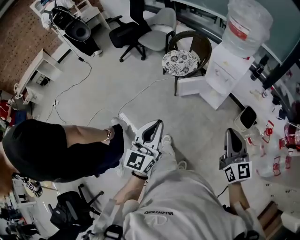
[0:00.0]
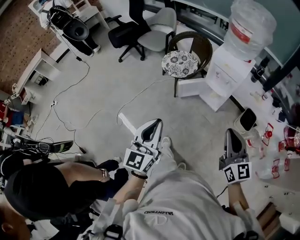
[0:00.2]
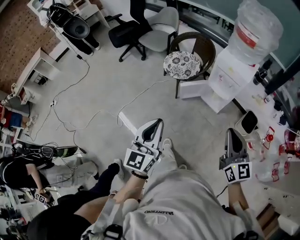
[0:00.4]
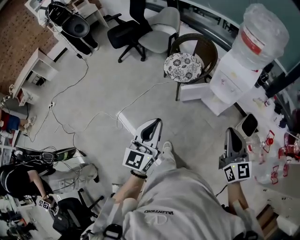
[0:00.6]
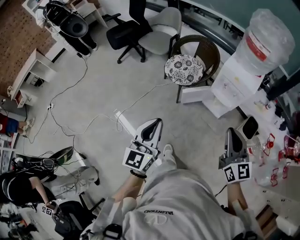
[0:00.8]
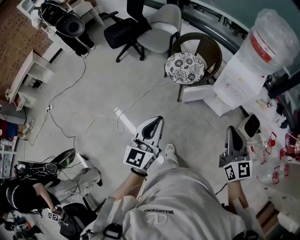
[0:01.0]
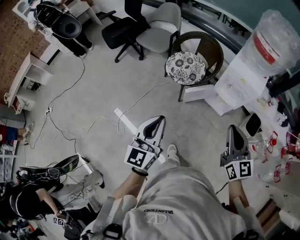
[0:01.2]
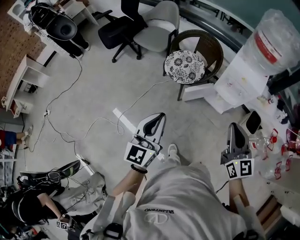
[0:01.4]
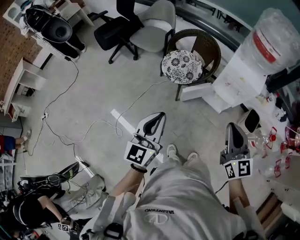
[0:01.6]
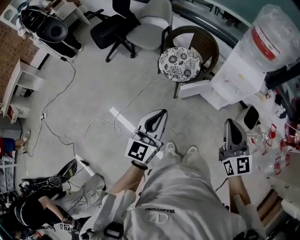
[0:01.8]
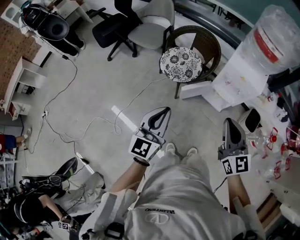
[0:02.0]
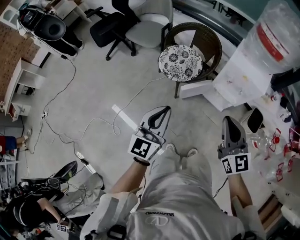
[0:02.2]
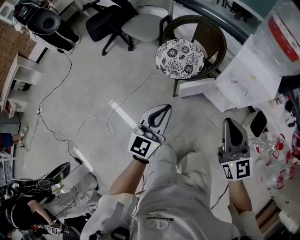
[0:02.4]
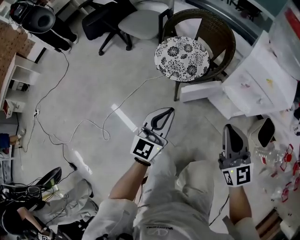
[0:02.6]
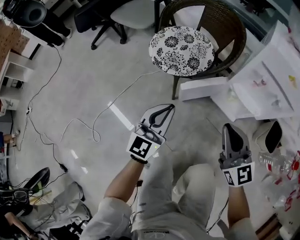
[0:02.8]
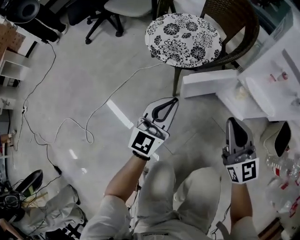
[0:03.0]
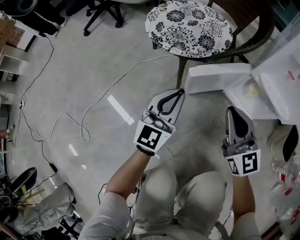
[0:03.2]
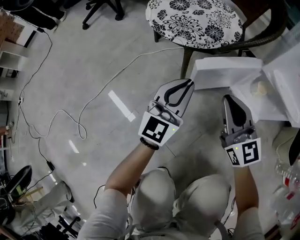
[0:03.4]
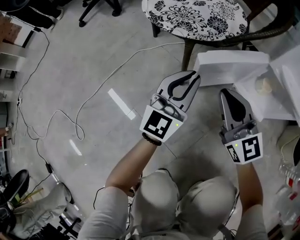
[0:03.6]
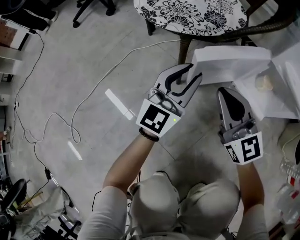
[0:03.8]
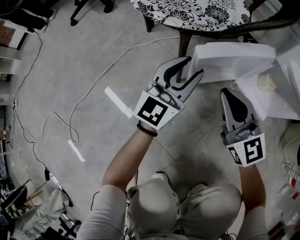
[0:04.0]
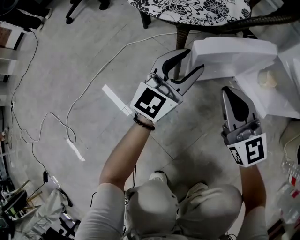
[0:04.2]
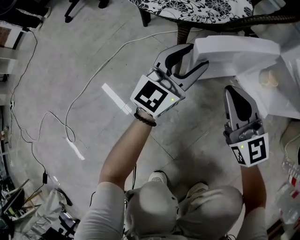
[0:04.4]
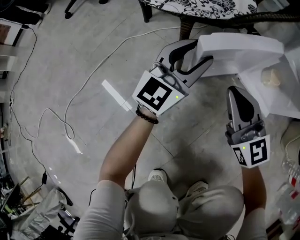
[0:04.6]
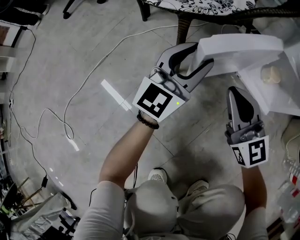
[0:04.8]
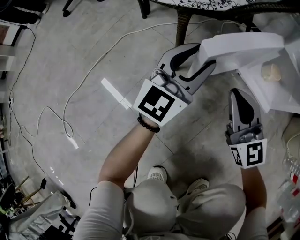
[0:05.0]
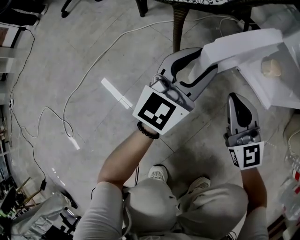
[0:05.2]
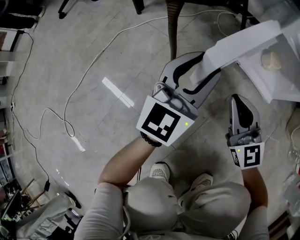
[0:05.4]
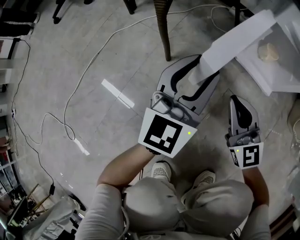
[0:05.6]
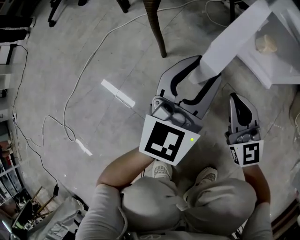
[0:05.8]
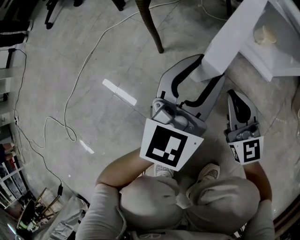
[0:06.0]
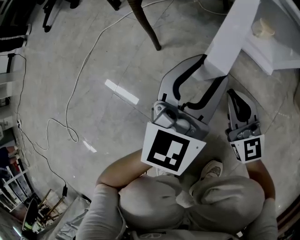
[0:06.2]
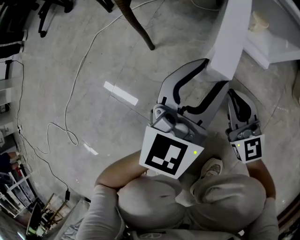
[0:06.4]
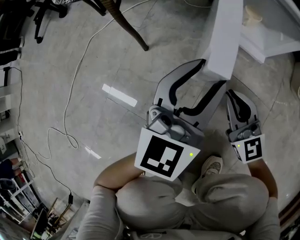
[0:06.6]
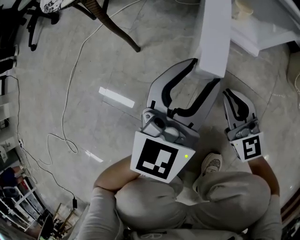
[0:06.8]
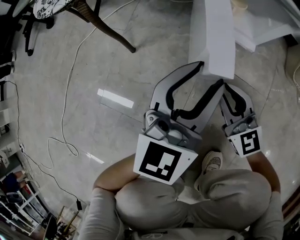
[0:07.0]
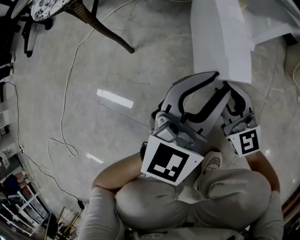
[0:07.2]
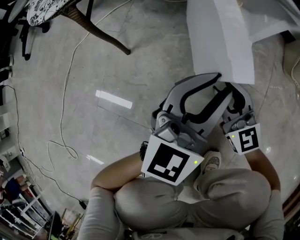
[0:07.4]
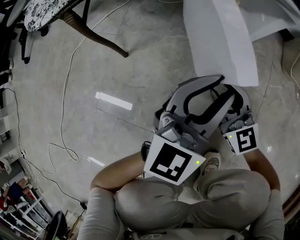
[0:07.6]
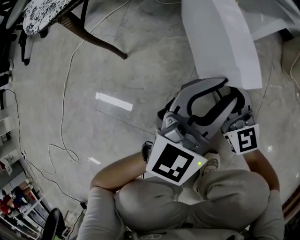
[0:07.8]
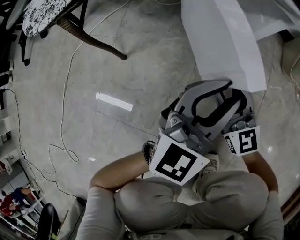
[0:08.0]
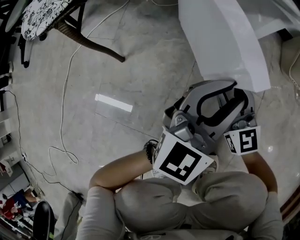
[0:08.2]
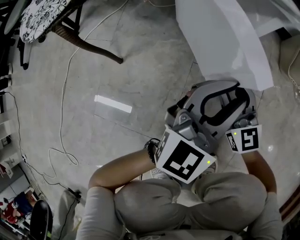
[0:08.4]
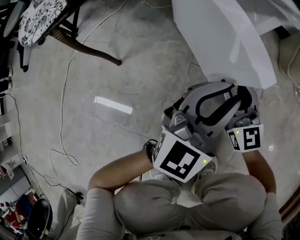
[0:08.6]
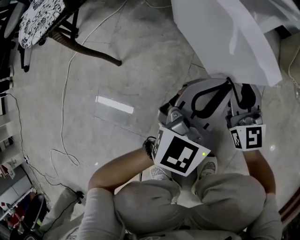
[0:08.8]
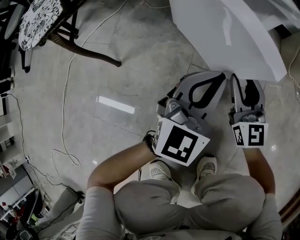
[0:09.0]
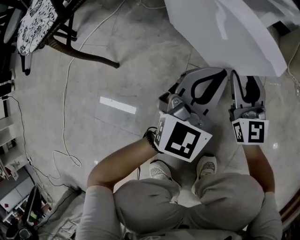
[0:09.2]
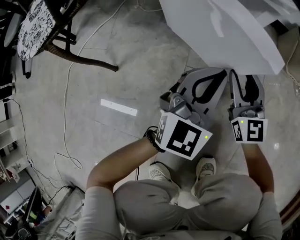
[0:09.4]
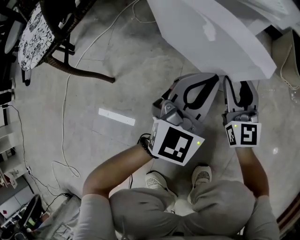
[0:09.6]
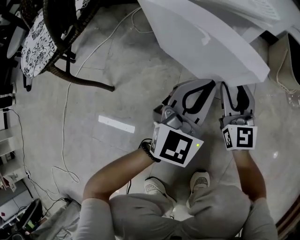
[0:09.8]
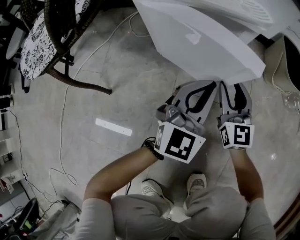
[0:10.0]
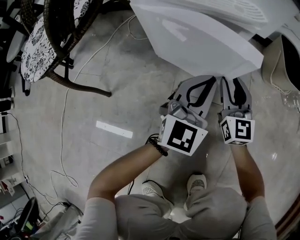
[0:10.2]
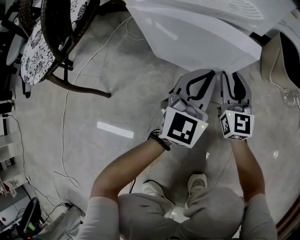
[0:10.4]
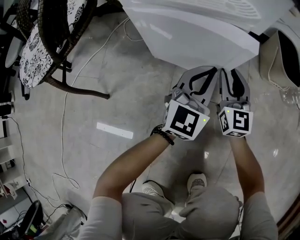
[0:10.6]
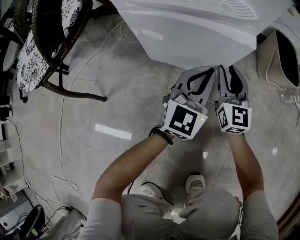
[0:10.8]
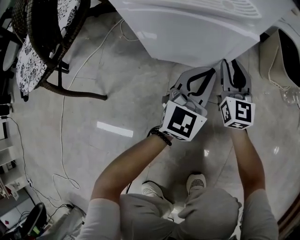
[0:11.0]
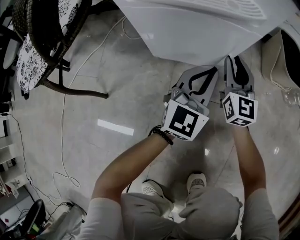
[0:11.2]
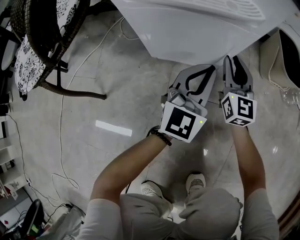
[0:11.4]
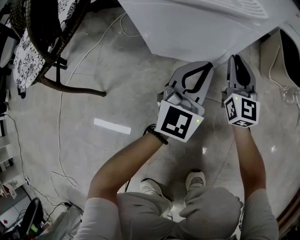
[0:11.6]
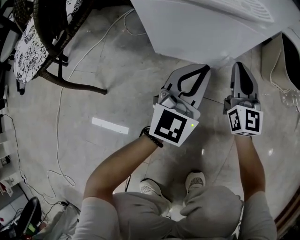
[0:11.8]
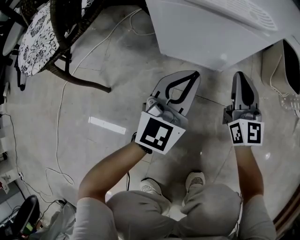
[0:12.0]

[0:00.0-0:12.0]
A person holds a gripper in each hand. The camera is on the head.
0:00.0 to 0:01.6: The two grippers go roughly 30 cm forward and to the left.
0:01.6 to 0:03.0: Both grippers move downward and forward, some 50 cm.
0:03.0 to 0:04.4: The right gripper shifts approximately 25 cm downward. Meanwhile the left gripper moves downward and forward, roughly 25 cm, and opens up.
0:04.4 to 0:06.0: The right gripper travels downward, backward and to the right by roughly 15 cm. The left gripper heads backward and to the right, covering some 15 cm.
0:06.0 to 0:07.6: The right gripper moves to the right, some 5 cm, and opens its fingers; the left gripper heads to the right, covering approximately 15 cm, and changes its angle by about 20 degrees.
0:07.6 to 0:09.0: The left gripper changes place by approximately 10 cm, and closes; the right gripper heads to the right and forward, covering some 10 cm, and changes its angle by approximately 20 degrees.
0:09.0 to 0:10.4: Both grippers move forward and to the right, approximately 10 cm.
0:10.4 to 0:12.0: The left gripper travels to the left by some 5 cm. The right gripper goes some 5 cm upward, and closes up.

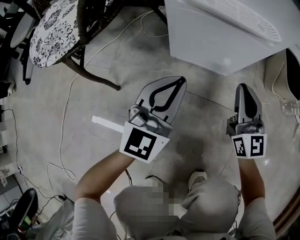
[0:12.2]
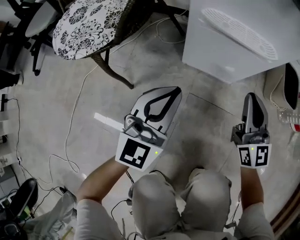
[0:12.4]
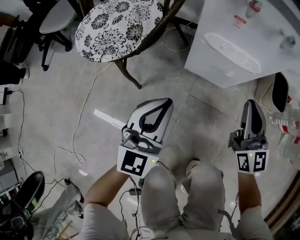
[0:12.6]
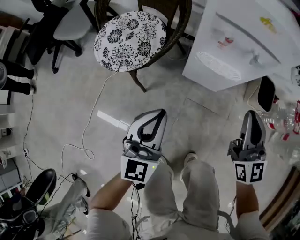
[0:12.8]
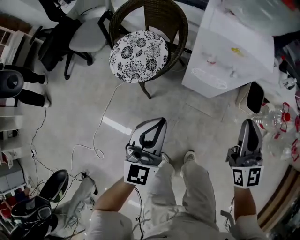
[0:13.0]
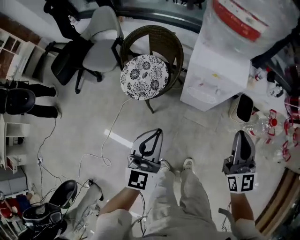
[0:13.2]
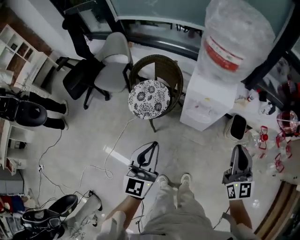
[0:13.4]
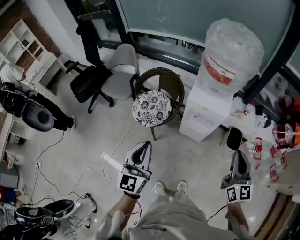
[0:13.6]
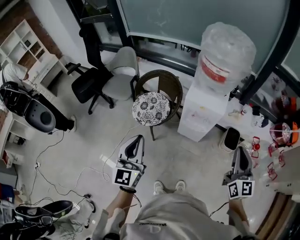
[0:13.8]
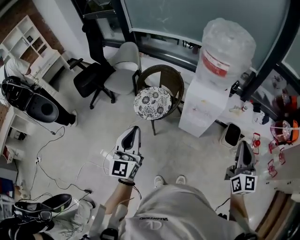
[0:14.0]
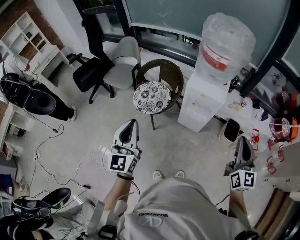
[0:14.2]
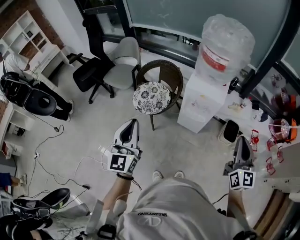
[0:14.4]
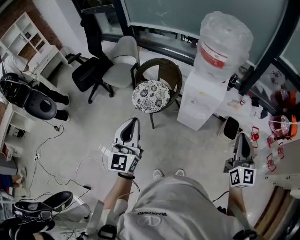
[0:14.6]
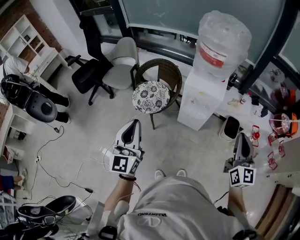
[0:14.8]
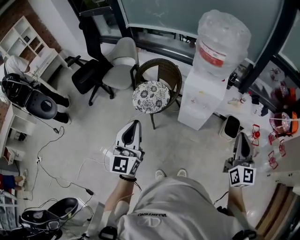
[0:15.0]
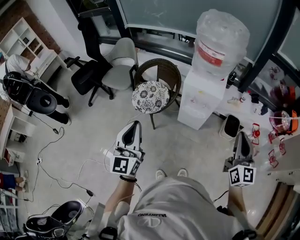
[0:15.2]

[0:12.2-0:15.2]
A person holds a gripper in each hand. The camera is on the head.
0:12.2 to 0:13.8: Both grippers travel together upward, some 80 cm. The left gripper rotates approximately 30 degrees.
0:13.8 to 0:15.2: The grippers stay close to where they were, moving slightly.

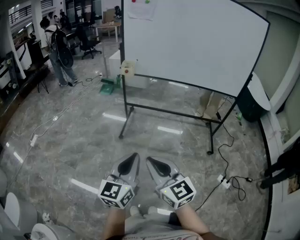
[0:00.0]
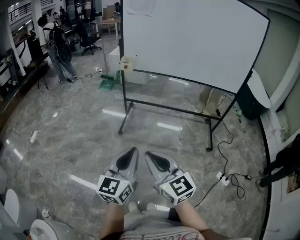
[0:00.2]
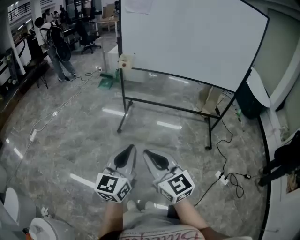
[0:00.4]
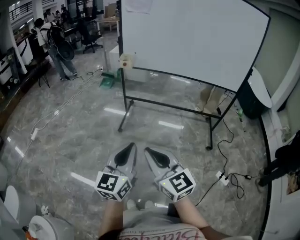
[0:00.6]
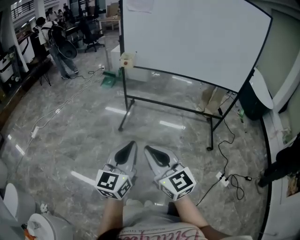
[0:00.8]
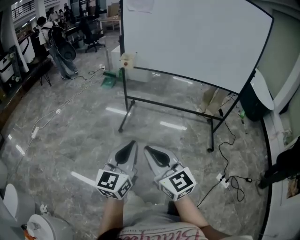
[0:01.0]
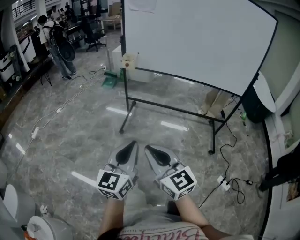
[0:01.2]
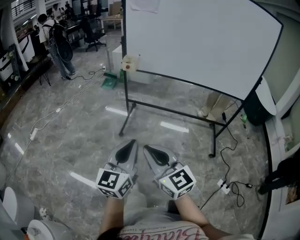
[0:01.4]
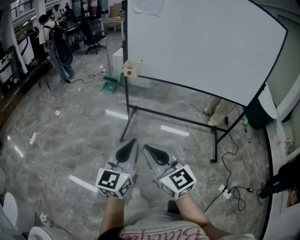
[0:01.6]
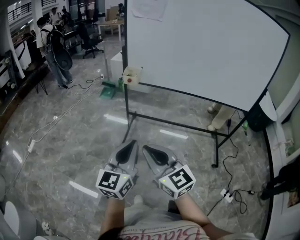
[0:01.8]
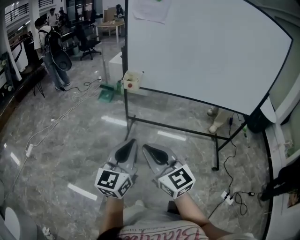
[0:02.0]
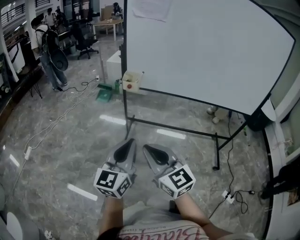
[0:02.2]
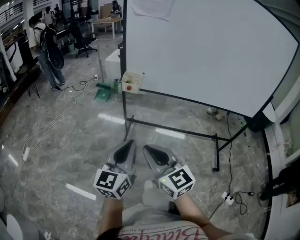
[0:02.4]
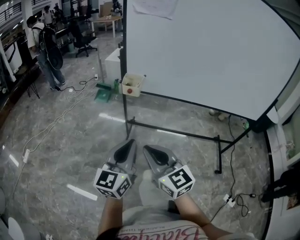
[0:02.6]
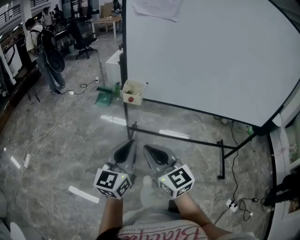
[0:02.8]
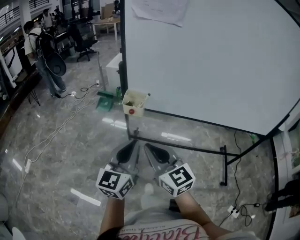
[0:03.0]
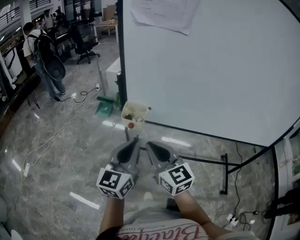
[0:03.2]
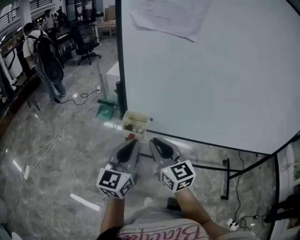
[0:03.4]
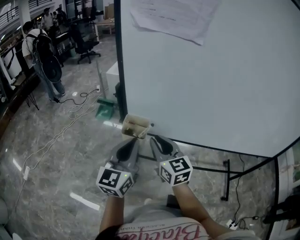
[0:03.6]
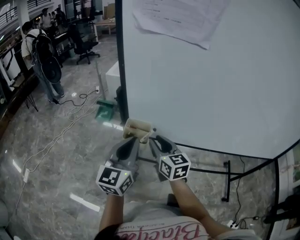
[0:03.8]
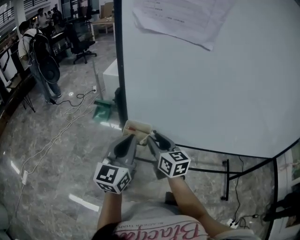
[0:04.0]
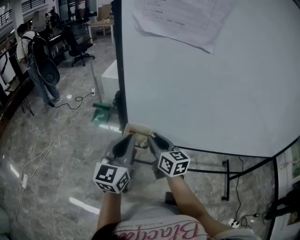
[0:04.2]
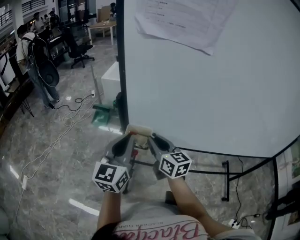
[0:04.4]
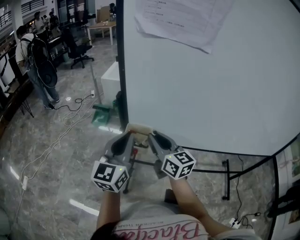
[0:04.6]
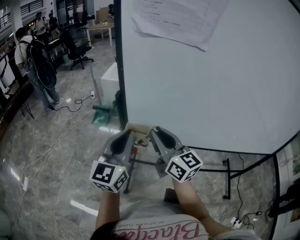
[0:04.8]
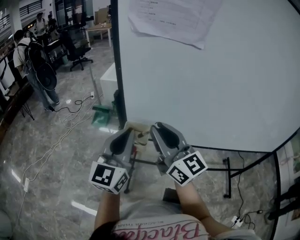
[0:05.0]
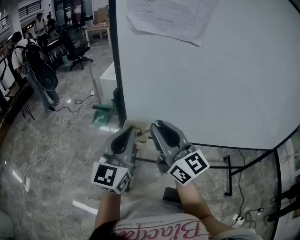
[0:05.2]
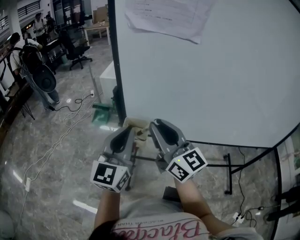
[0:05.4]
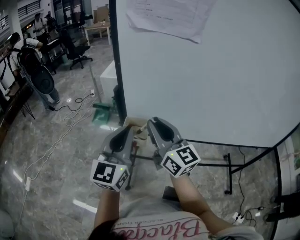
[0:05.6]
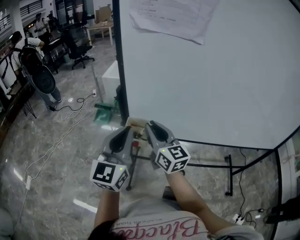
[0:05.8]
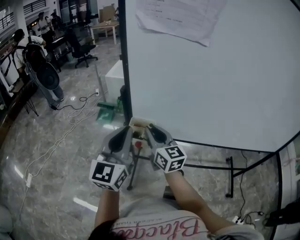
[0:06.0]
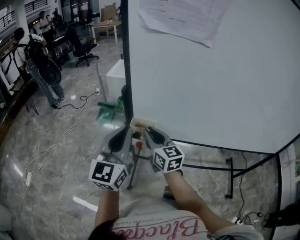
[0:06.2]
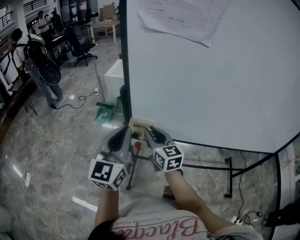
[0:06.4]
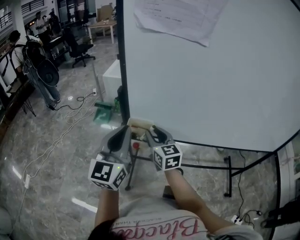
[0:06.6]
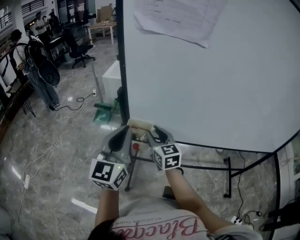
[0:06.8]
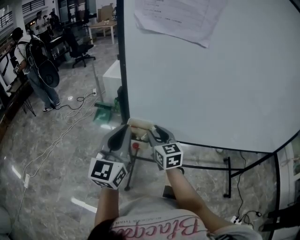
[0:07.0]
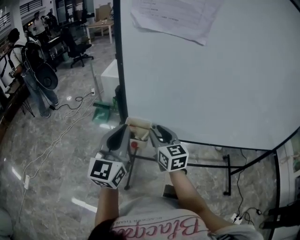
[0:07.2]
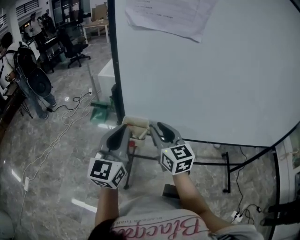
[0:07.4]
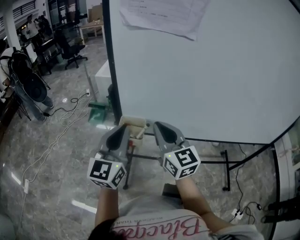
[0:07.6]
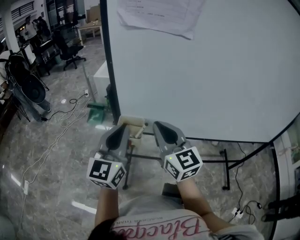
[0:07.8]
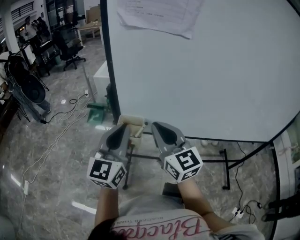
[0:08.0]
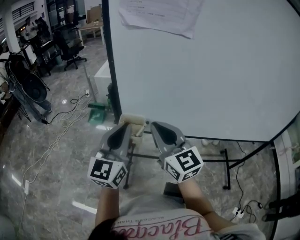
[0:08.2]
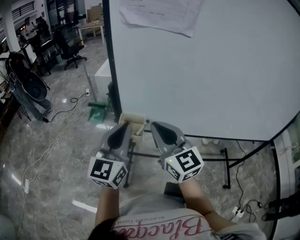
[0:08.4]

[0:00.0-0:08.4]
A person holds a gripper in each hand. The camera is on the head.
0:00.0 to 0:01.4: The two grippers go some 10 cm forward.
0:01.4 to 0:02.8: Both grippers travel together forward, approximately 30 cm.
0:02.8 to 0:04.2: Both grippers travel together forward, roughly 30 cm. The right gripper swivels some 20 degrees.
0:04.2 to 0:05.6: The left gripper travels upward by some 5 cm; the right gripper shifts roughly 15 cm upward and backward, and rotates roughly 20 degrees.
0:05.6 to 0:07.0: The right gripper shifts some 15 cm downward and forward, and changes its angle by roughly 30 degrees.
0:07.0 to 0:08.4: The right gripper goes approximately 15 cm upward and backward, and closes its fingers.
